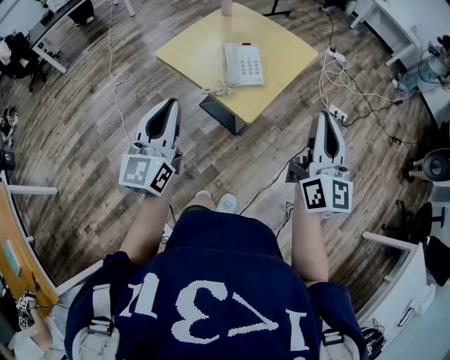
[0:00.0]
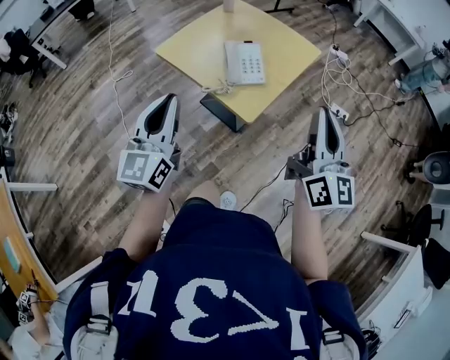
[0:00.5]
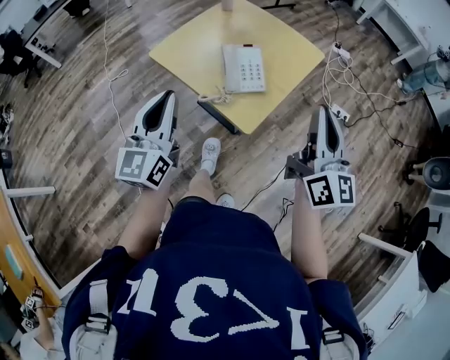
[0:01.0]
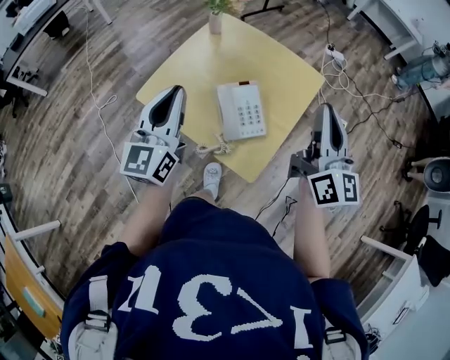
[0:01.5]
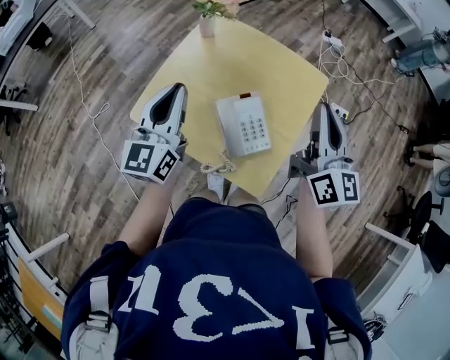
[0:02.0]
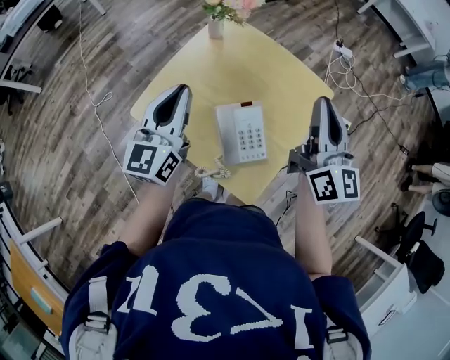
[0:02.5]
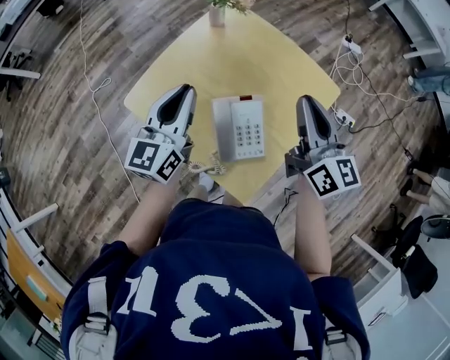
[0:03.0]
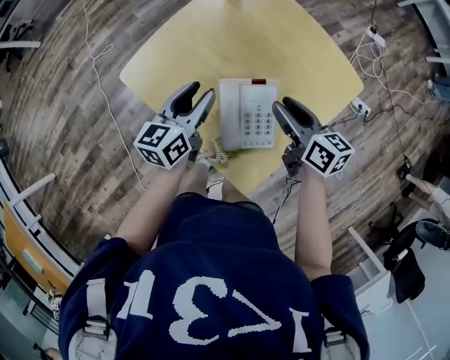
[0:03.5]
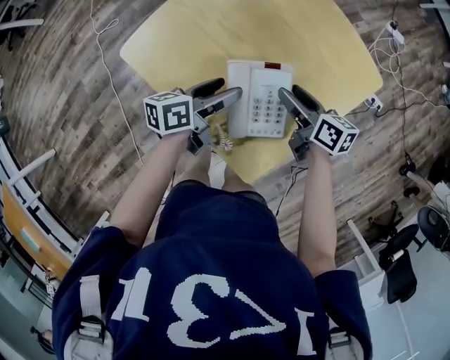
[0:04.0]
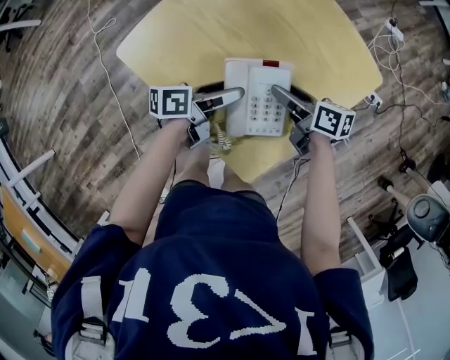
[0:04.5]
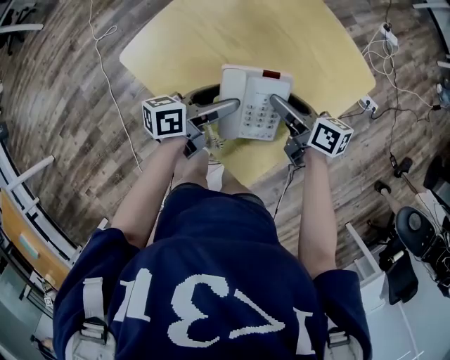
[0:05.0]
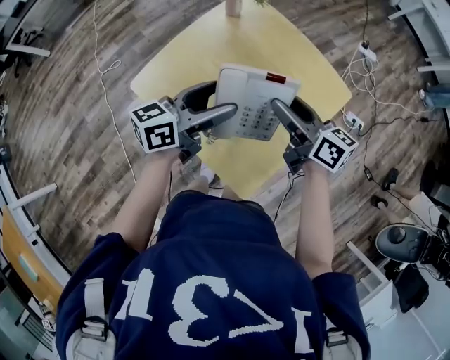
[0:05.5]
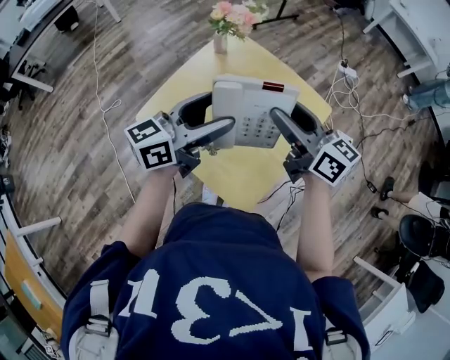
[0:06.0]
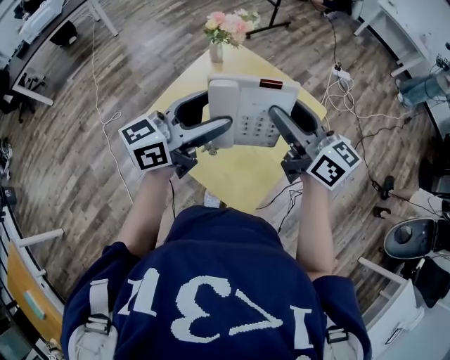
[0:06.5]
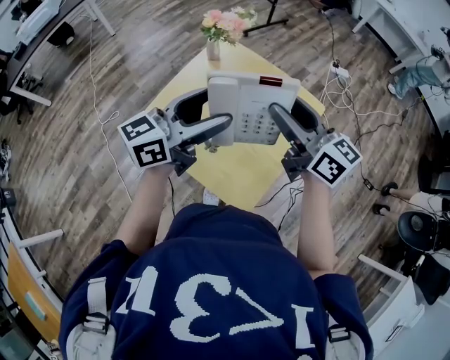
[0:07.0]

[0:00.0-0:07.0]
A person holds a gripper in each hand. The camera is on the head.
0:00.0 to 0:02.0: The two grippers go approximately 35 cm forward.
0:02.0 to 0:03.5: The two grippers go roughly 20 cm downward. The right gripper points its fingers about 30 degrees further downward, and opens its fingers. The left gripper turns by some 30 degrees, and opens.
0:03.5 to 0:05.0: The left gripper travels to the right by some 5 cm, rotates roughly 40 degrees, and opens its fingers. The right gripper travels downward by some 5 cm.
0:05.0 to 0:07.0: The two grippers go approximately 30 cm upward. The left gripper turns by some 40 degrees. The right gripper turns by roughly 40 degrees.

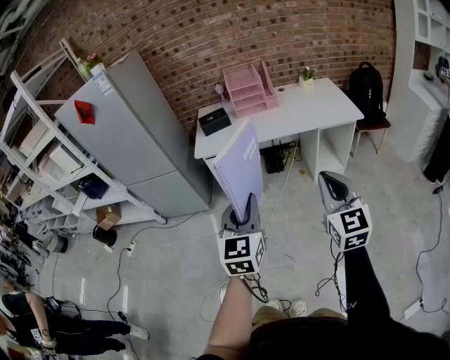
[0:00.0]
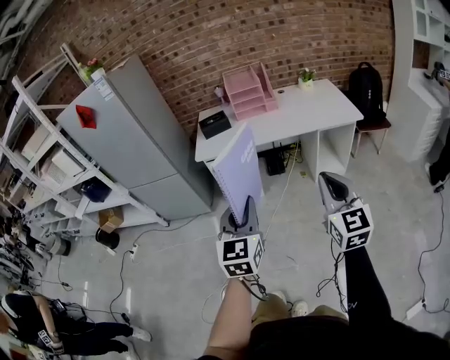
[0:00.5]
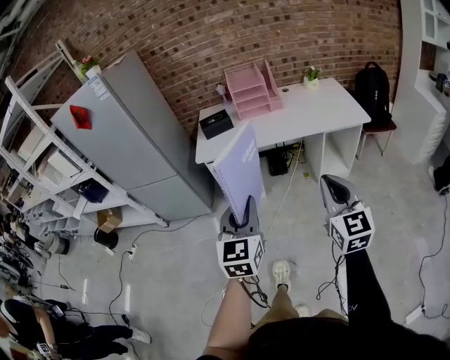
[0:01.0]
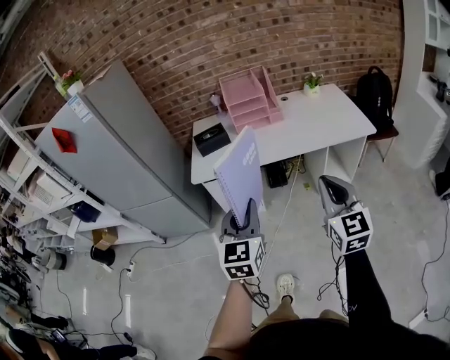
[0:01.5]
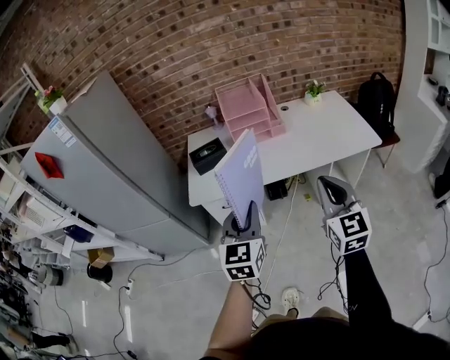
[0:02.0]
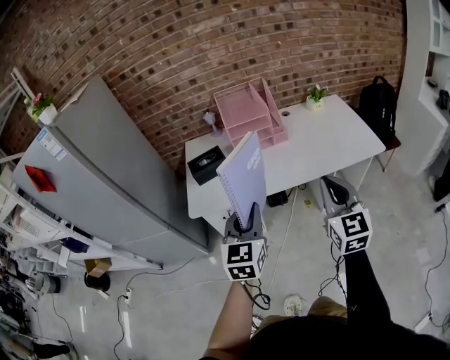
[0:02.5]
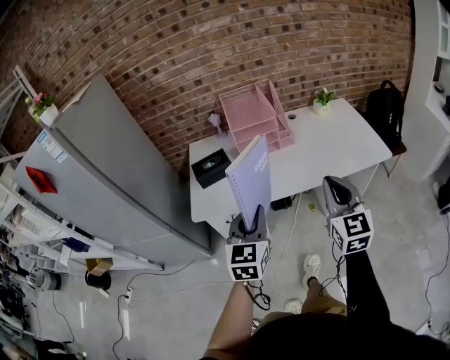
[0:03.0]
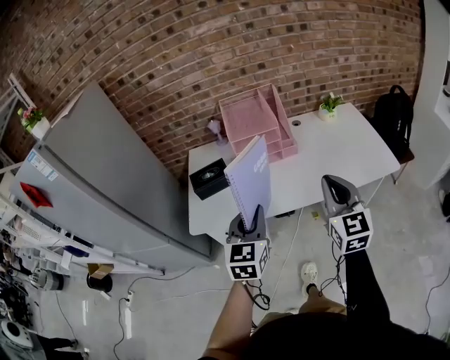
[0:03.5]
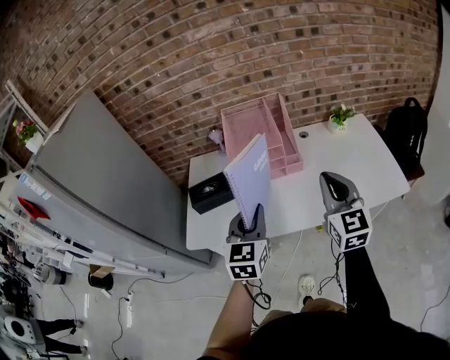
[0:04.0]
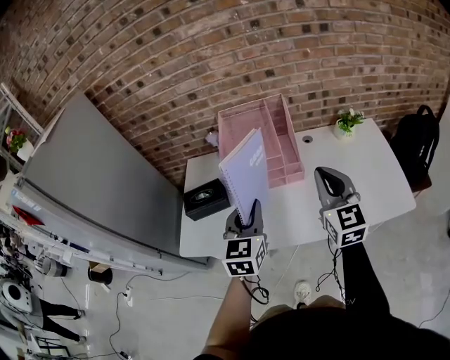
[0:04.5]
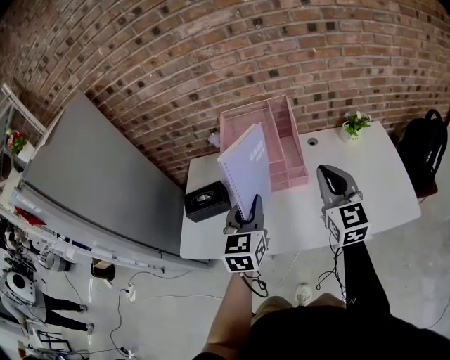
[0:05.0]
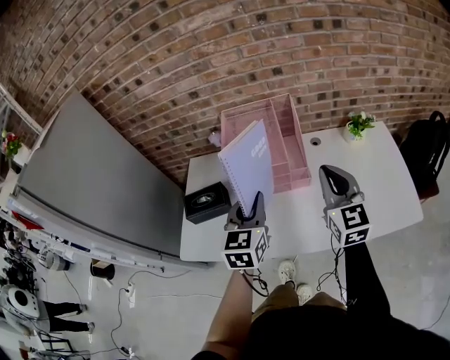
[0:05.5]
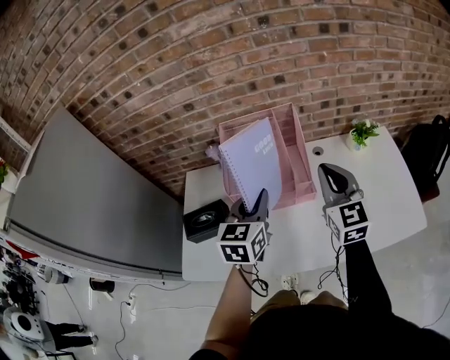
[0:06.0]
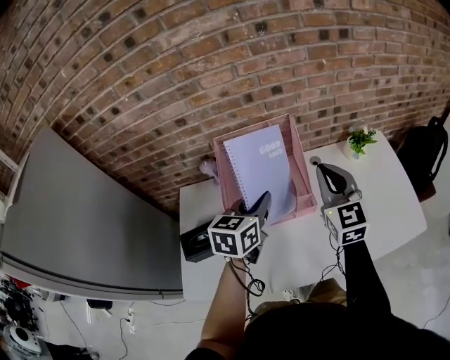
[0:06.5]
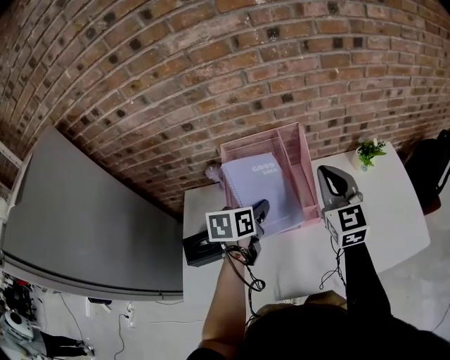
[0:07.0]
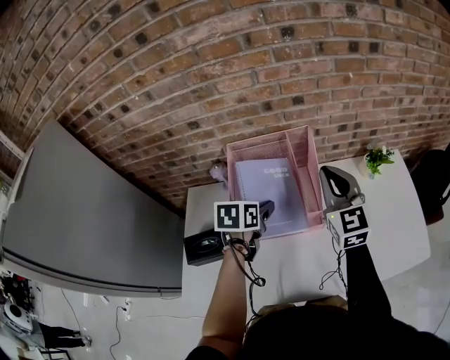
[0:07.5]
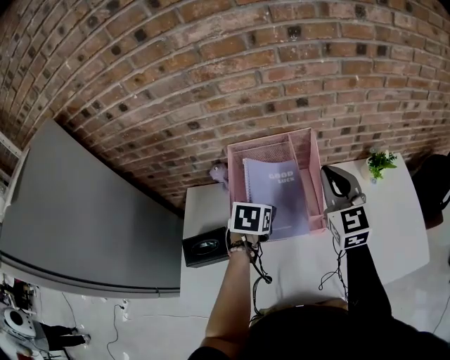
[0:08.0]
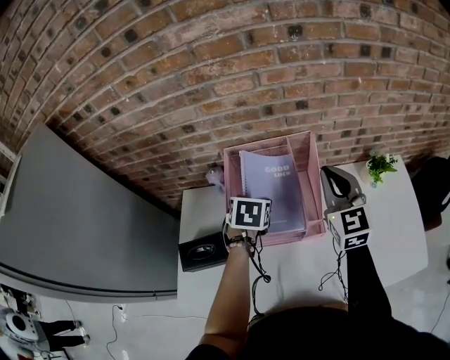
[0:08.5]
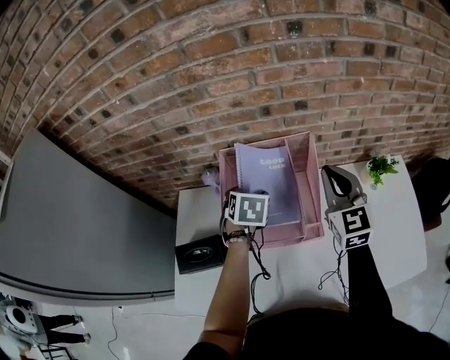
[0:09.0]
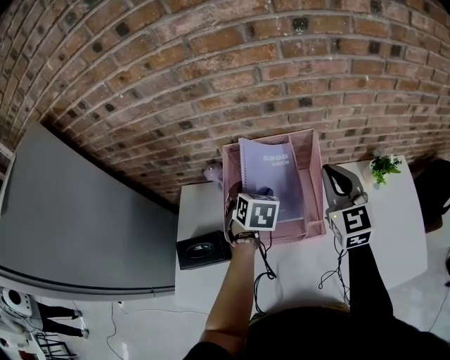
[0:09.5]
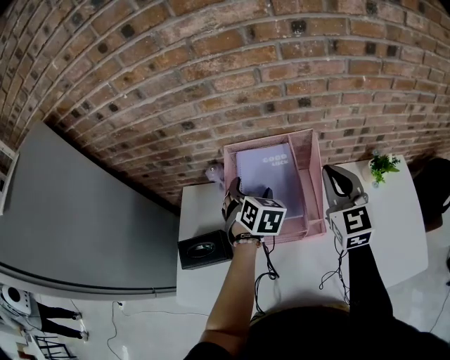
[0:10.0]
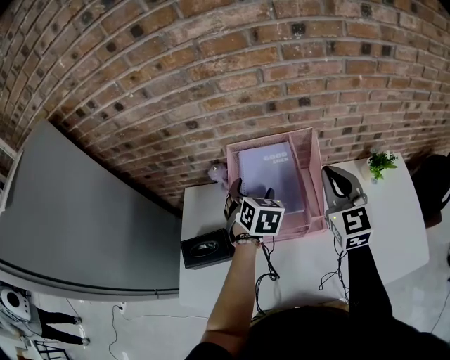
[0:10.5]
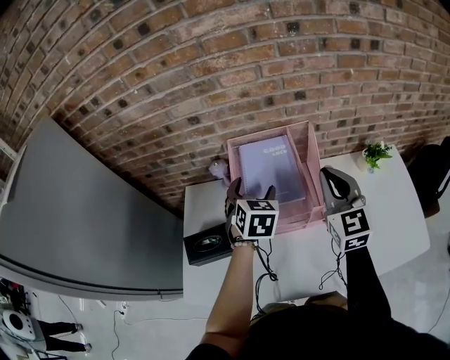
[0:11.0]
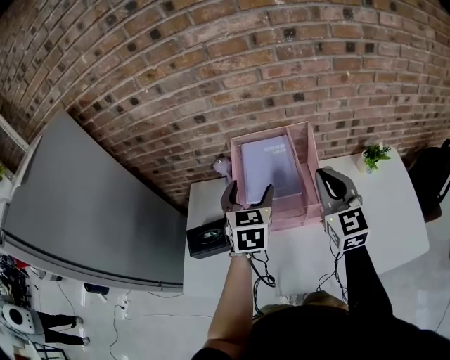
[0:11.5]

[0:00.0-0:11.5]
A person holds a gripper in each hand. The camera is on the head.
0:00.0 to 0:02.0: Both grippers travel together forward, about 30 cm.
0:02.0 to 0:04.0: Both grippers move forward, some 30 cm.
0:04.0 to 0:06.0: Both grippers travel together forward, roughly 25 cm.
0:06.0 to 0:07.5: The right gripper goes some 10 cm forward, while the left gripper moves forward, downward and to the left, some 15 cm, changes its angle by about 30 degrees, and opens.
0:07.5 to 0:09.5: Both grippers travel together forward, roughly 10 cm. The left gripper changes its angle by approximately 30 degrees.
0:09.5 to 0:11.5: The right gripper moves backward, about 10 cm. Meanwhile the left gripper travels backward and upward by about 15 cm, and rotates some 30 degrees.

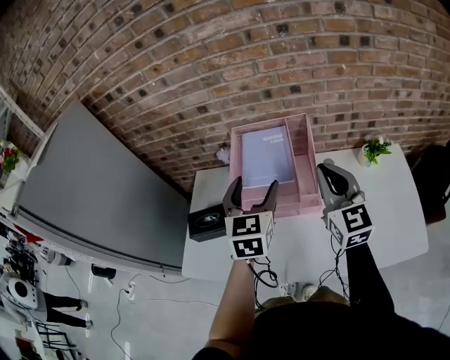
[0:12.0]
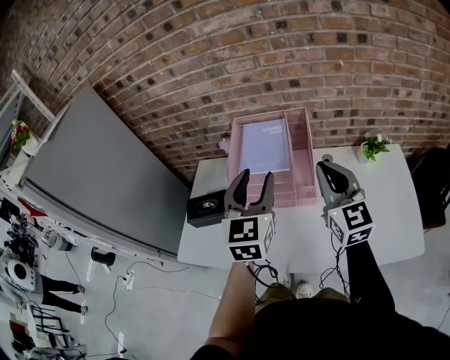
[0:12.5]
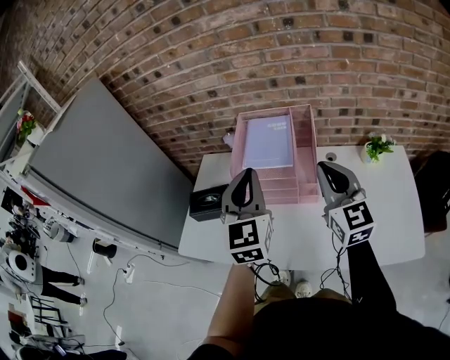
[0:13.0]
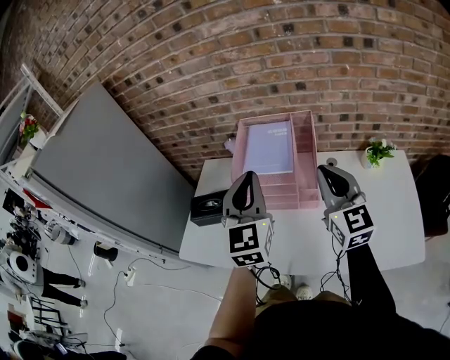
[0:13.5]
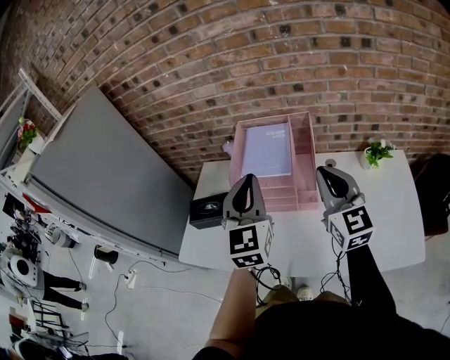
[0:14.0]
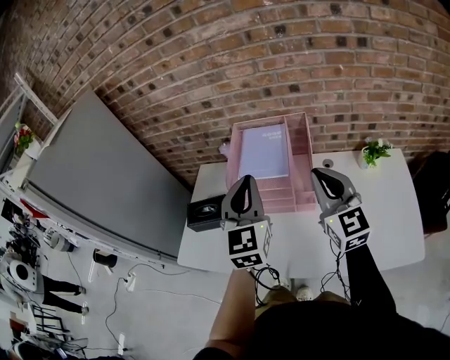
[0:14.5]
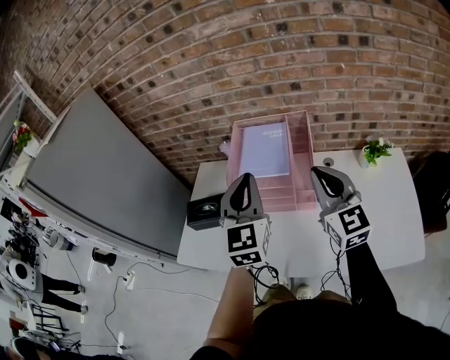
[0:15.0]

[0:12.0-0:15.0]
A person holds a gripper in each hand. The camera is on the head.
0:12.0 to 0:13.5: The left gripper goes some 10 cm backward and upward, and closes its fingers.
0:13.5 to 0:15.0: The grippers stay close to where they were, moving slightly.

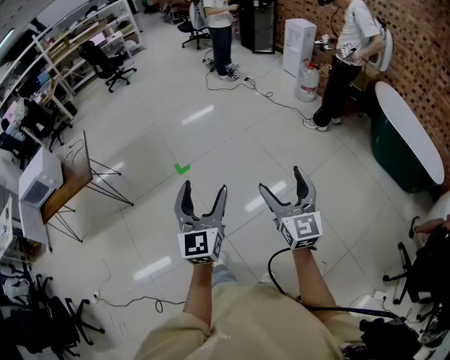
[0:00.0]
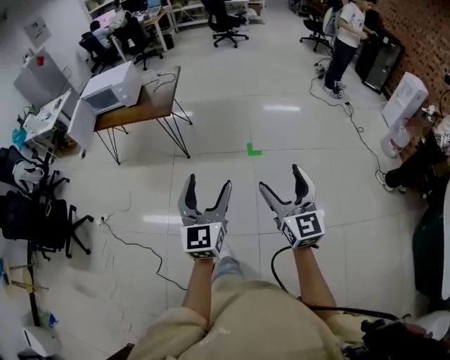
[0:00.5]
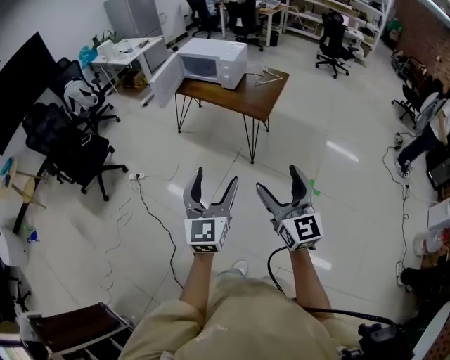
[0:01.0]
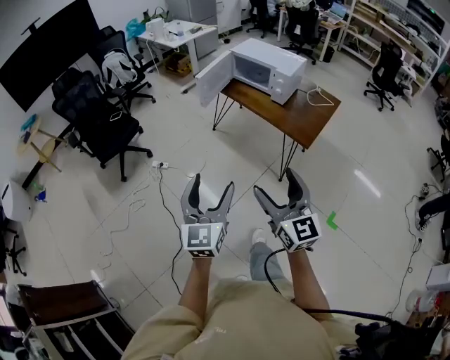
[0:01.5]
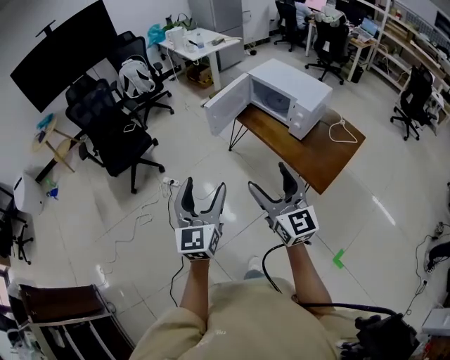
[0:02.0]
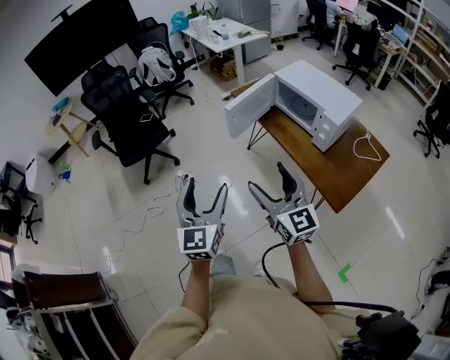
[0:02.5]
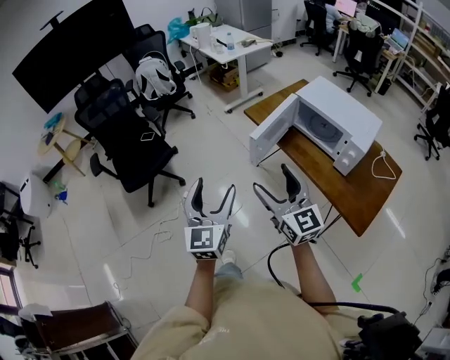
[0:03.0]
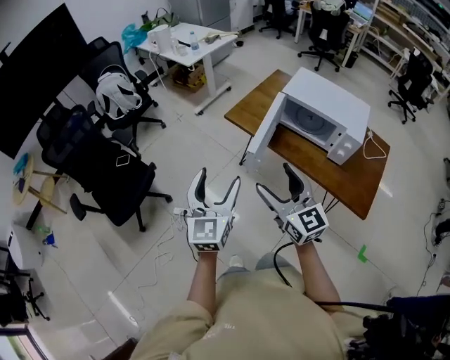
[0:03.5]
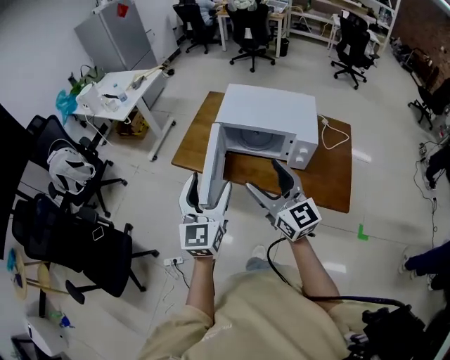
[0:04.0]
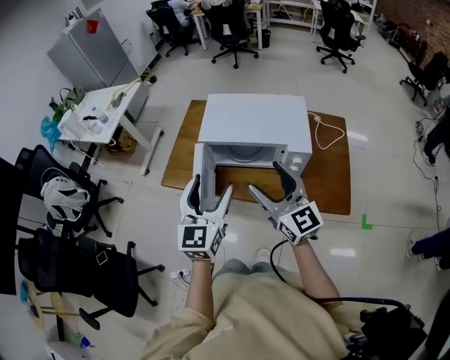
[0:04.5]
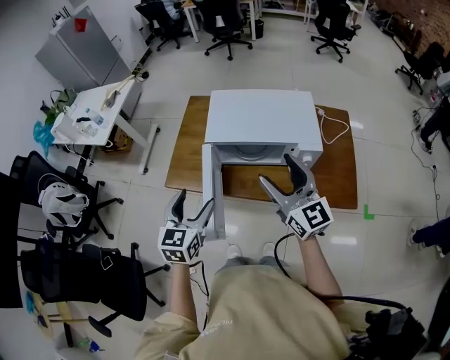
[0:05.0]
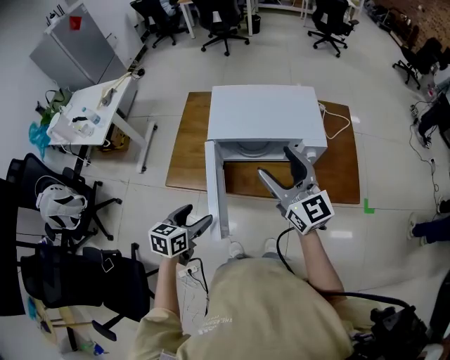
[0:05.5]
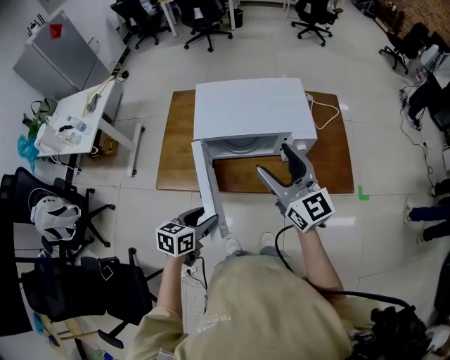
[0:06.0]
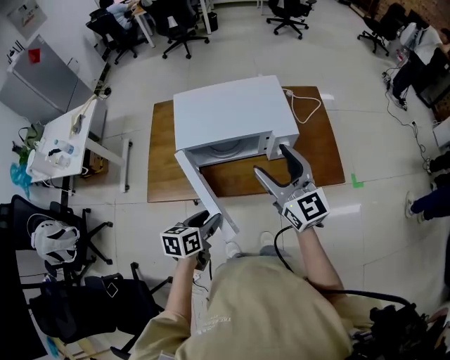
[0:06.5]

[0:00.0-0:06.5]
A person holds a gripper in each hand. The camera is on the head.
0:00.0 to 0:02.0: Both grippers are carried roughly 80 cm. The right gripper turns by approximately 80 degrees; the left gripper changes its angle by some 70 degrees.
0:02.0 to 0:04.5: Both grippers are carried about 50 cm. The left gripper turns by about 40 degrees, while the right gripper turns by about 30 degrees.
0:04.5 to 0:06.5: The right gripper ends up roughly 10 cm from where it was. Meanwhile the left gripper travels downward by some 15 cm, tilts its fingers roughly 40 degrees downward, and closes up.
